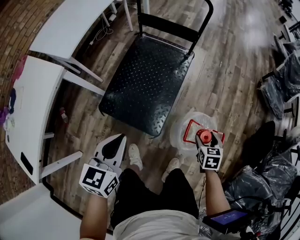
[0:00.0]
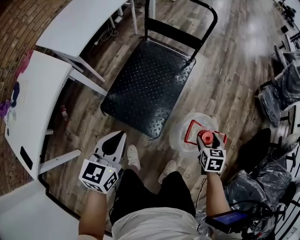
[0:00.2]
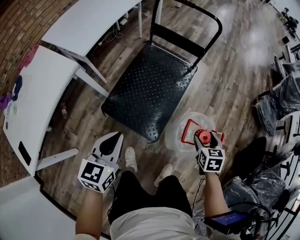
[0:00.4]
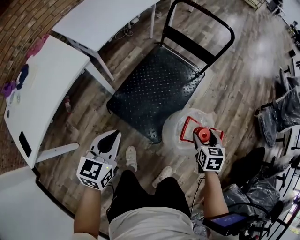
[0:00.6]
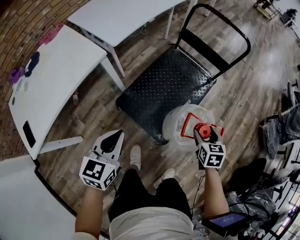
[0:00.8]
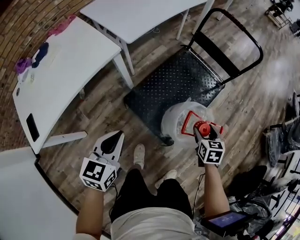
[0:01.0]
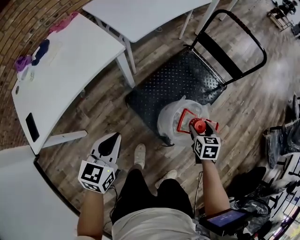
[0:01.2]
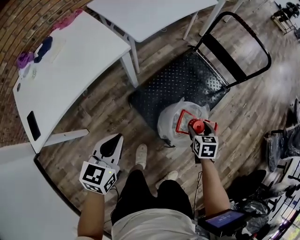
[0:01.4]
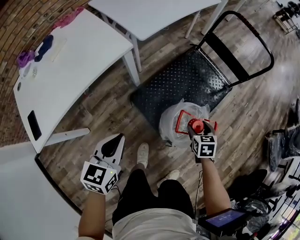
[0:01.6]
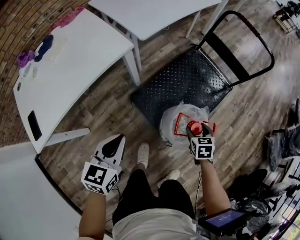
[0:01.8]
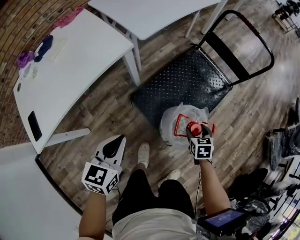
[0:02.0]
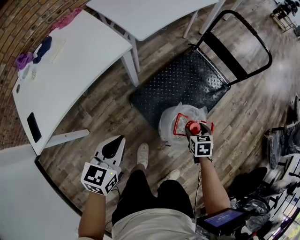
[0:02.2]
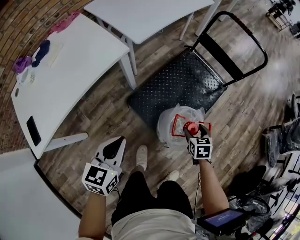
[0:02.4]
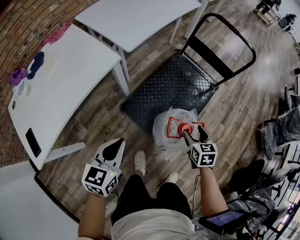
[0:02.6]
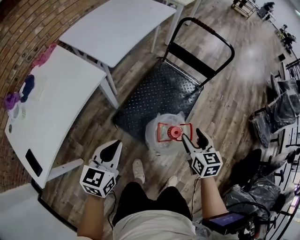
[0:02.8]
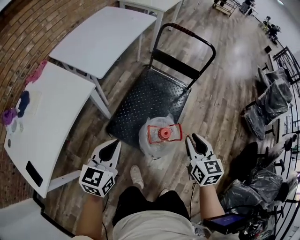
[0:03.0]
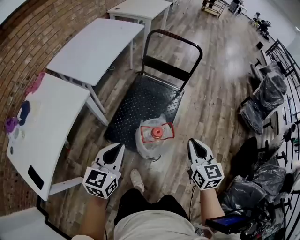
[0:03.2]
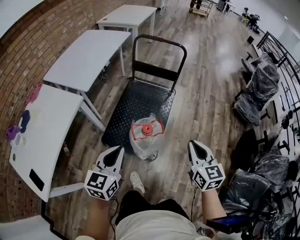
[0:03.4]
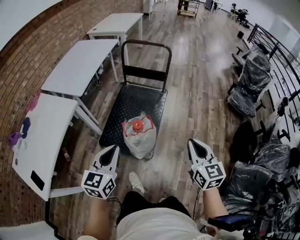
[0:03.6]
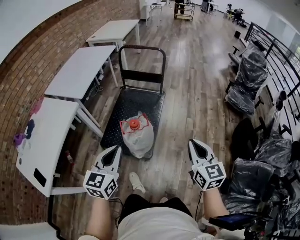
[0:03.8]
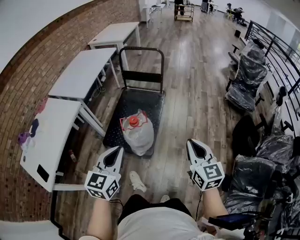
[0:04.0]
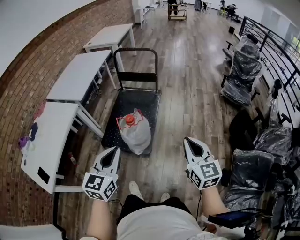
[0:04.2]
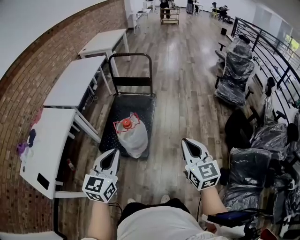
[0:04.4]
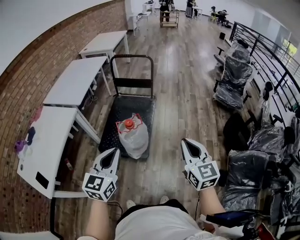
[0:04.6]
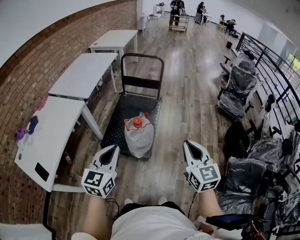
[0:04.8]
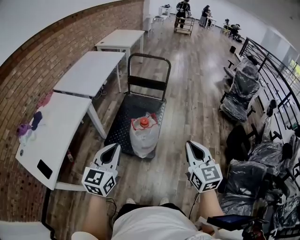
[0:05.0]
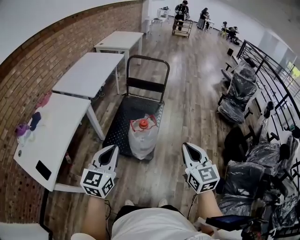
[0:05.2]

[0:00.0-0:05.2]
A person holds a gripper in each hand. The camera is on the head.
0.0 to 1.8 s: The right gripper moves approximately 10 cm upward and comes back, and changes its angle by about 30 degrees, while the left gripper moves approximately 20 cm, and swivels roughly 20 degrees.
1.8 to 3.4 s: The left gripper shifts roughly 20 cm to the right and upward, and swivels some 30 degrees. Meanwhile the right gripper shifts roughly 40 cm upward, backward and to the right, tilts its fingers roughly 40 degrees upward, and closes.
3.4 to 5.2 s: The two grippers go about 20 cm backward and upward.

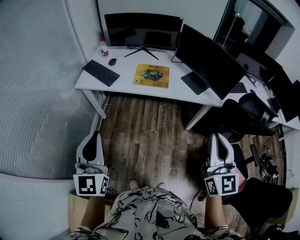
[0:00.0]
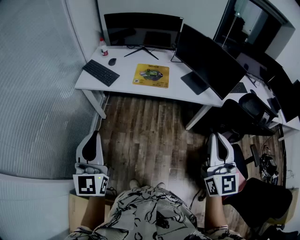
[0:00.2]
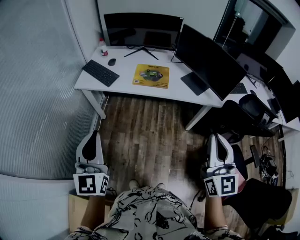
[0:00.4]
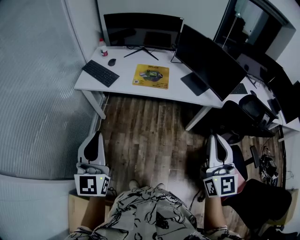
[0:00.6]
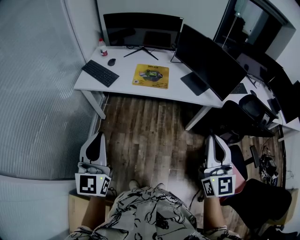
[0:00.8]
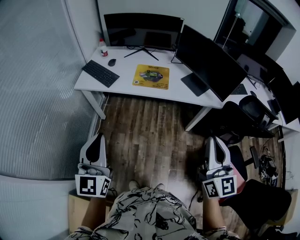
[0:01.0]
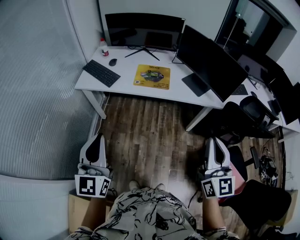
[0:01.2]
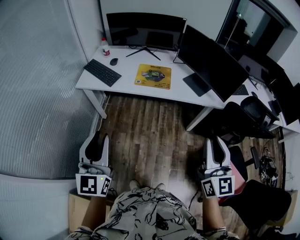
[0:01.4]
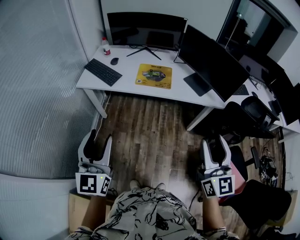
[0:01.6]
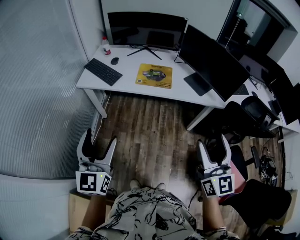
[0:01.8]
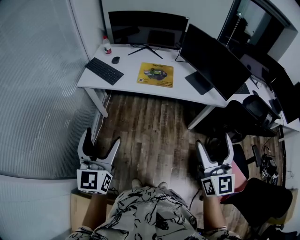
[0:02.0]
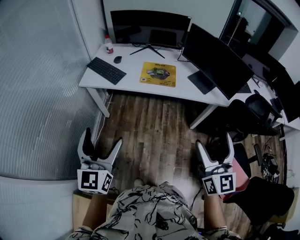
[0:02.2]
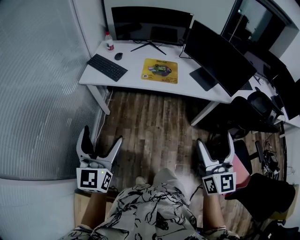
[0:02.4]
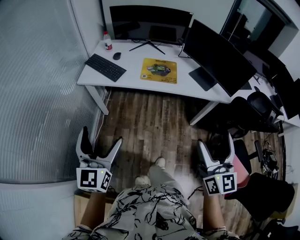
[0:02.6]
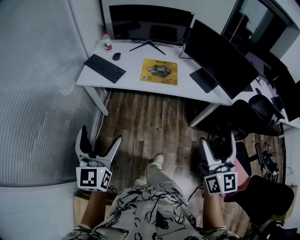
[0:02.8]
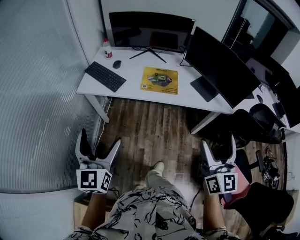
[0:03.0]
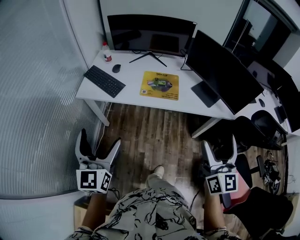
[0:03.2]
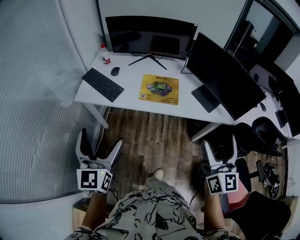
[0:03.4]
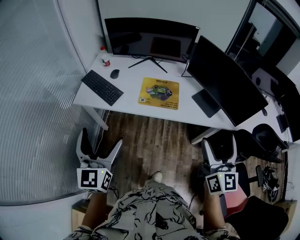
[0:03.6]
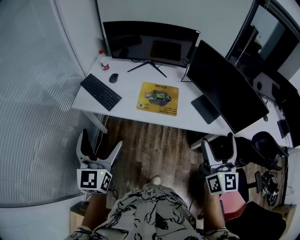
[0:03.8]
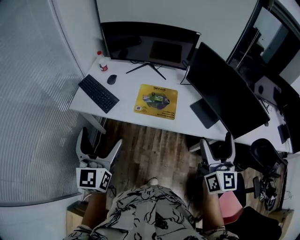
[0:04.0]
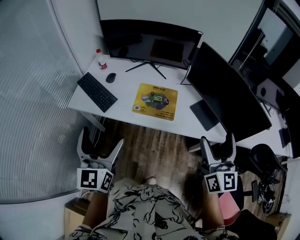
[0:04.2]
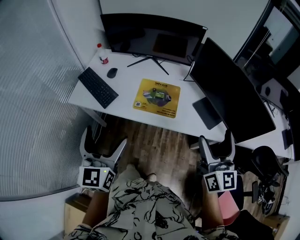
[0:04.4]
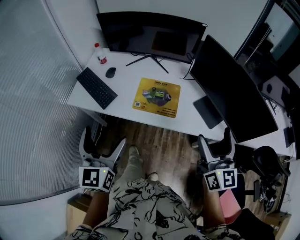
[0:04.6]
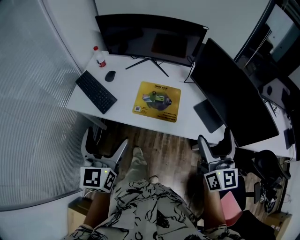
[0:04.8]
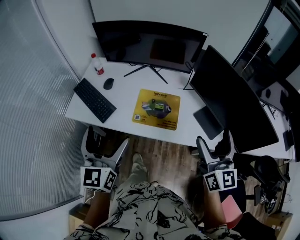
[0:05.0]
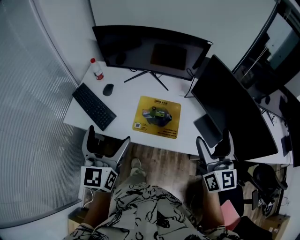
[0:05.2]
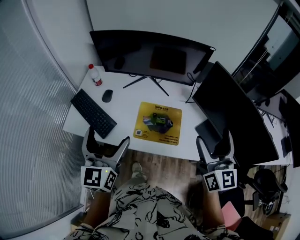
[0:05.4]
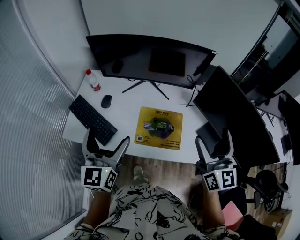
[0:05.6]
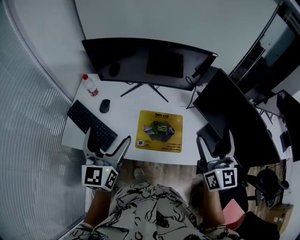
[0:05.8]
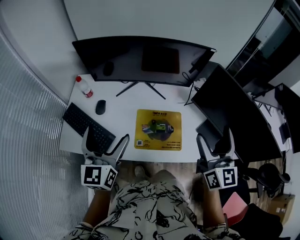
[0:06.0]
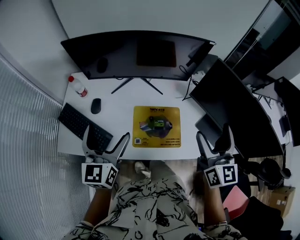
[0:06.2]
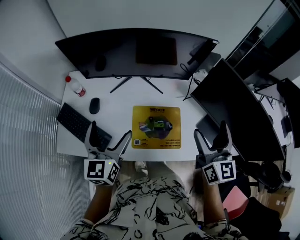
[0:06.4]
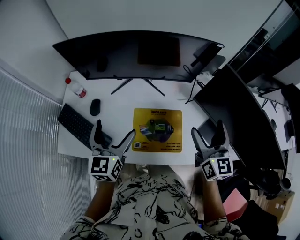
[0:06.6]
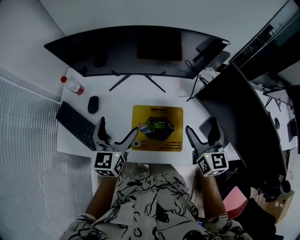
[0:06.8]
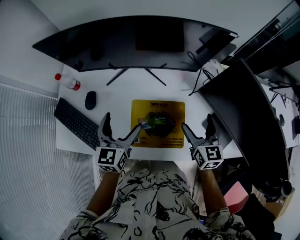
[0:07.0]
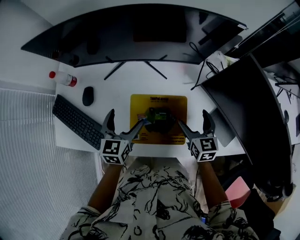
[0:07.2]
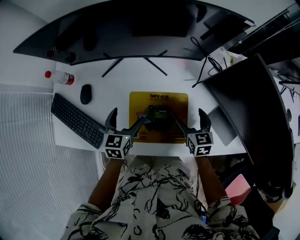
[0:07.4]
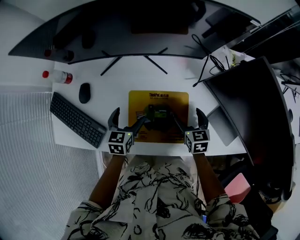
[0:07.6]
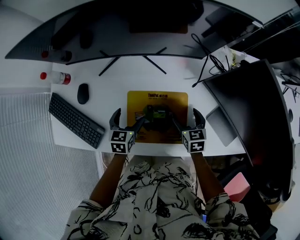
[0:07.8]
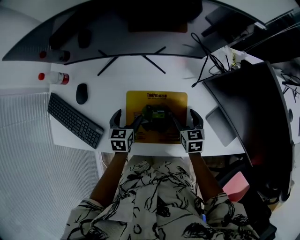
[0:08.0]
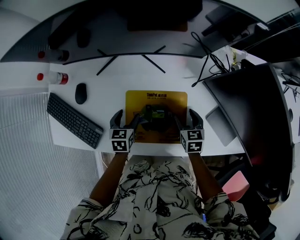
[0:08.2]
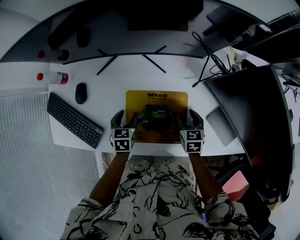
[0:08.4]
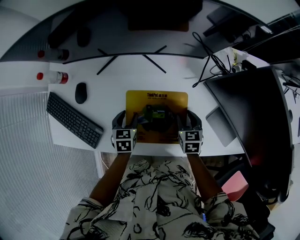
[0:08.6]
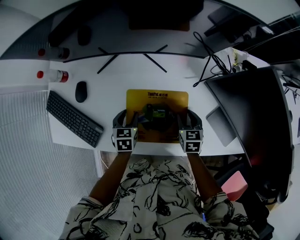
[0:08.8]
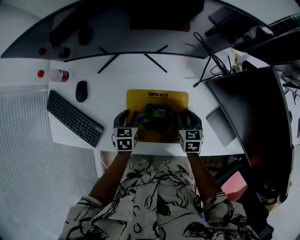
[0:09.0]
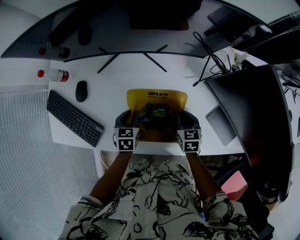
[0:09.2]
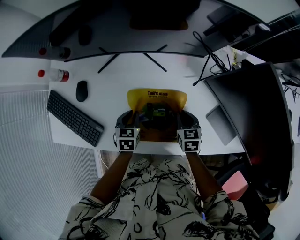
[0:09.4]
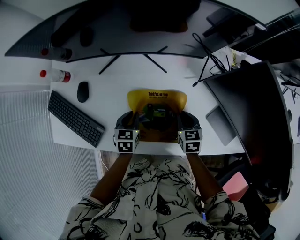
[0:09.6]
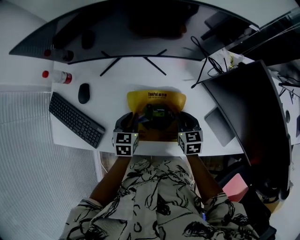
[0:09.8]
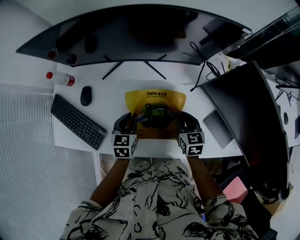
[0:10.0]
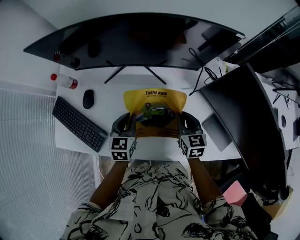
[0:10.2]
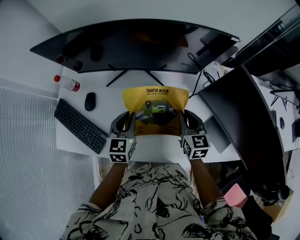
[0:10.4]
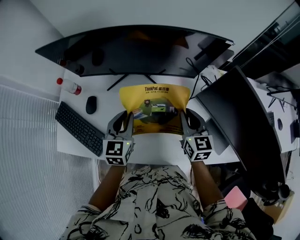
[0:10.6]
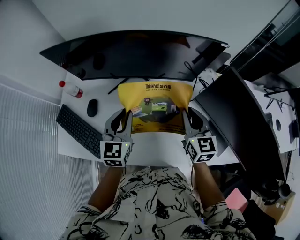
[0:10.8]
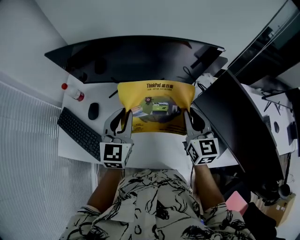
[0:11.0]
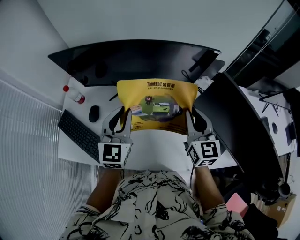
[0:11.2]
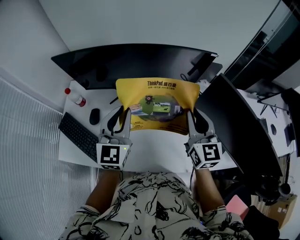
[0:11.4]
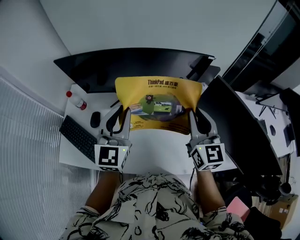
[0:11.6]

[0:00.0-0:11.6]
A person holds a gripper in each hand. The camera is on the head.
0.0 to 1.4 s: There are only small adjustments of the grippers.
1.4 to 2.8 s: The left gripper goes roughly 10 cm to the left and forward, and opens. The right gripper heads to the left, covering some 5 cm, and opens.
2.8 to 4.4 s: The left gripper is displaced forward and to the right by approximately 25 cm, while the right gripper heads forward, covering some 30 cm.
4.4 to 5.8 s: The grippers both shift forward by roughly 25 cm.
5.8 to 7.2 s: Both grippers move downward and forward, roughly 30 cm. The right gripper angles its fingers downward, by approximately 40 degrees. The left gripper turns by approximately 30 degrees.
7.2 to 8.8 s: Both grippers travel together downward, some 15 cm. The left gripper turns by some 30 degrees, and closes. Meanwhile the right gripper closes its fingers.
8.8 to 10.2 s: The two grippers go about 10 cm upward.
10.2 to 11.6 s: Both grippers travel together upward, approximately 25 cm. The right gripper tilts its fingers roughly 30 degrees upward; the left gripper tips its fingers upward by about 30 degrees.

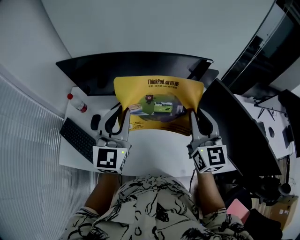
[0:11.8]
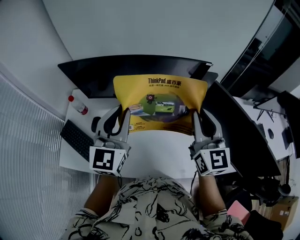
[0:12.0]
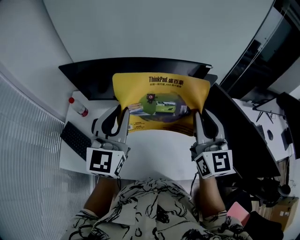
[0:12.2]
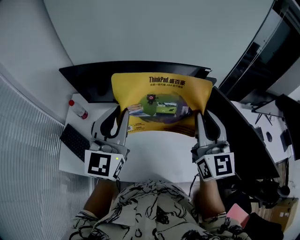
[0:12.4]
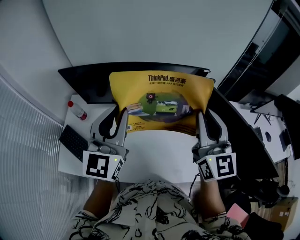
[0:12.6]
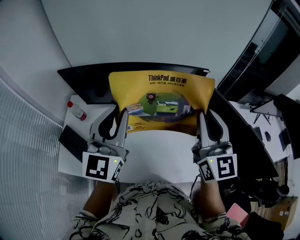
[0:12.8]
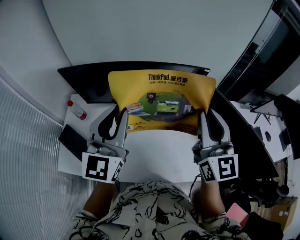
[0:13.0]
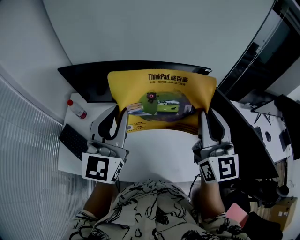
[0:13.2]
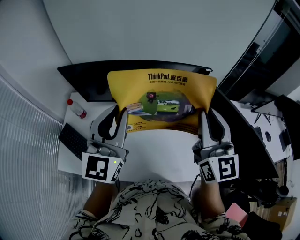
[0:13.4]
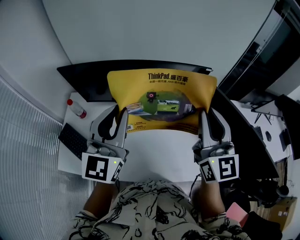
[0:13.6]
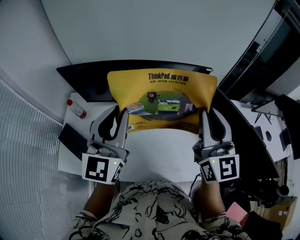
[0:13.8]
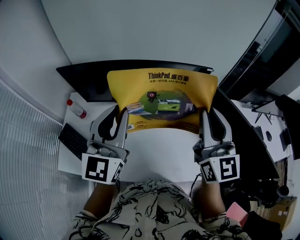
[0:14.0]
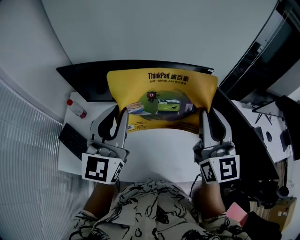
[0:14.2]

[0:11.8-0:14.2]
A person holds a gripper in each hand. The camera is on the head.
11.8 to 13.0 s: There are only small adjustments of the grippers.
13.0 to 14.2 s: Both grippers stay put.

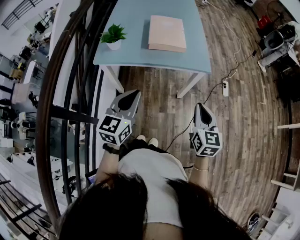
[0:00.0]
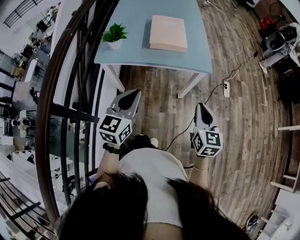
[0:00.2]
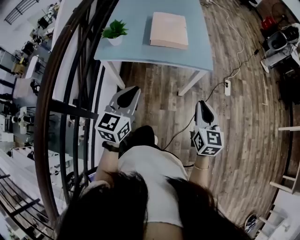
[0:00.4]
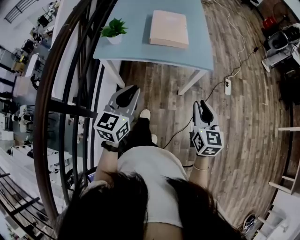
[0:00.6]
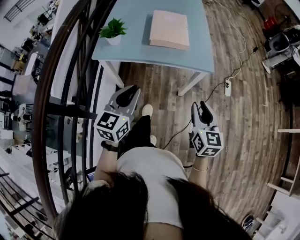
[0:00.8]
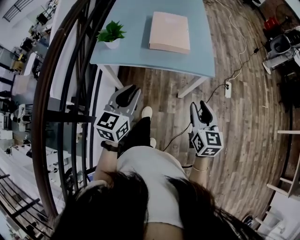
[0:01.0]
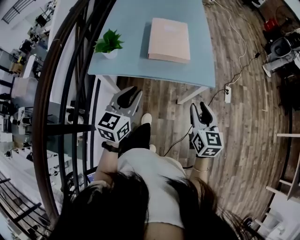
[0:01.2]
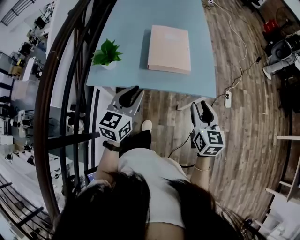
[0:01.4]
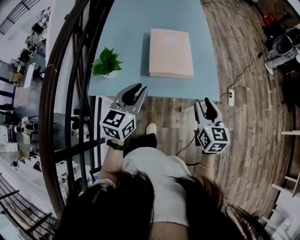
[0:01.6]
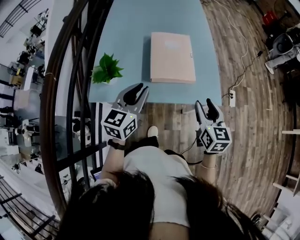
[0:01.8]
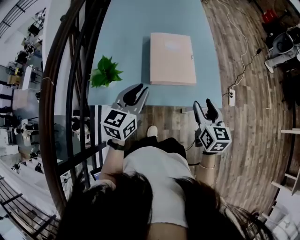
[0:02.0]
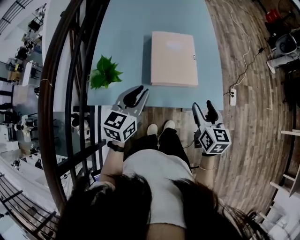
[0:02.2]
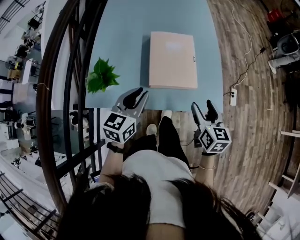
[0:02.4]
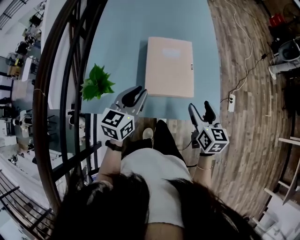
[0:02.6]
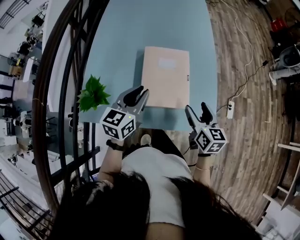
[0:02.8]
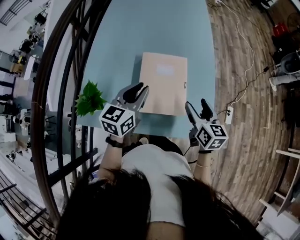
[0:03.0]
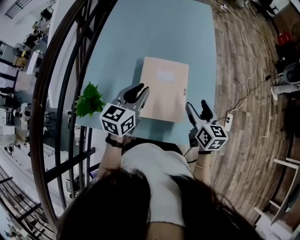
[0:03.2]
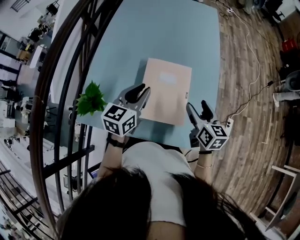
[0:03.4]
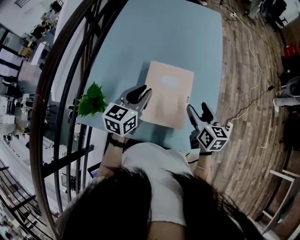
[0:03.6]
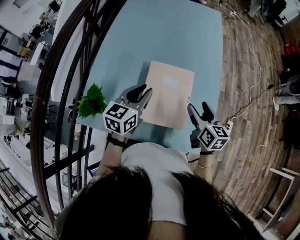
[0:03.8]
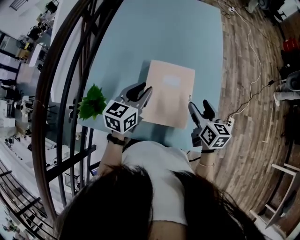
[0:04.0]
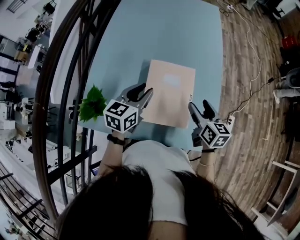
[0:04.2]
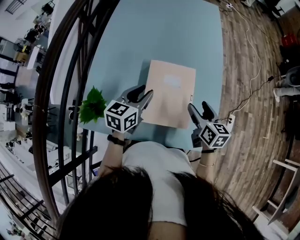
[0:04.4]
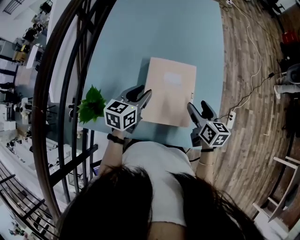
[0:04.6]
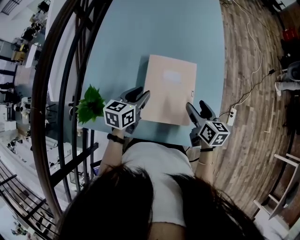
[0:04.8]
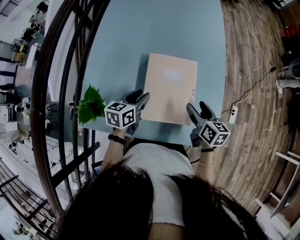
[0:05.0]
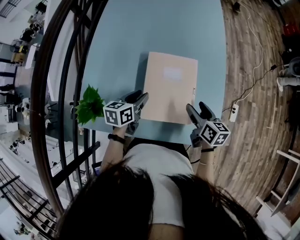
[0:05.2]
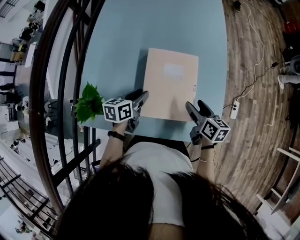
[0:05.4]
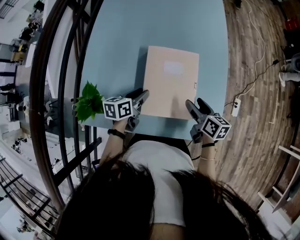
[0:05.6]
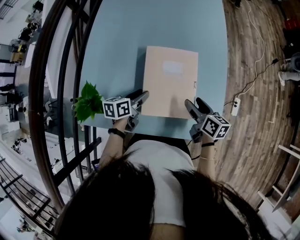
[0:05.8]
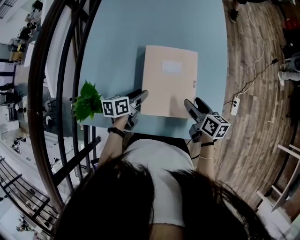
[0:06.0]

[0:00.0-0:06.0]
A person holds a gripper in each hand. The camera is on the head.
0.0 to 1.6 s: The grippers both shift forward by some 25 cm. The right gripper opens.
1.6 to 3.0 s: The grippers both shift forward by some 25 cm. The right gripper opens its fingers.
3.0 to 4.4 s: The right gripper moves forward, approximately 5 cm, while the left gripper shifts by some 5 cm.
4.4 to 6.0 s: The right gripper travels downward by some 10 cm, while the left gripper goes about 15 cm downward, and rotates about 30 degrees.
